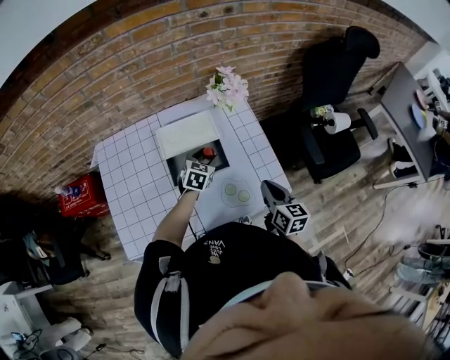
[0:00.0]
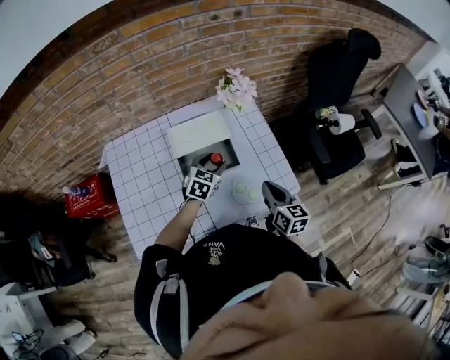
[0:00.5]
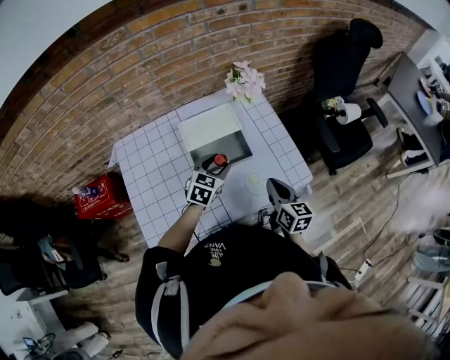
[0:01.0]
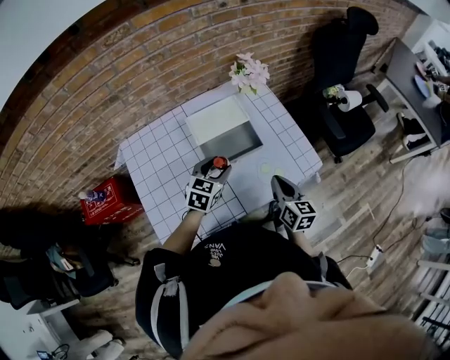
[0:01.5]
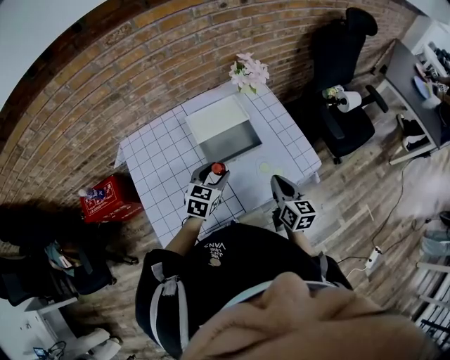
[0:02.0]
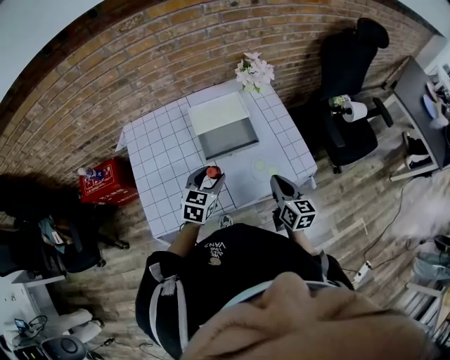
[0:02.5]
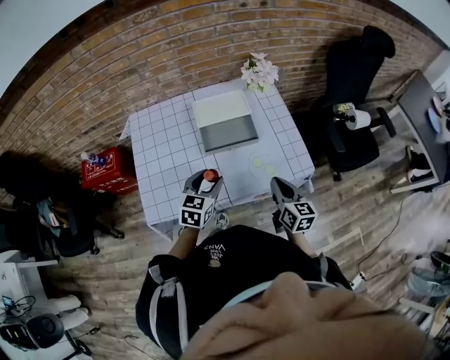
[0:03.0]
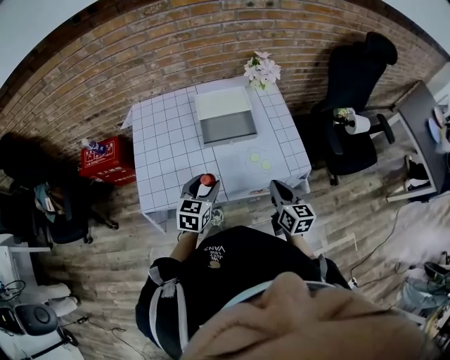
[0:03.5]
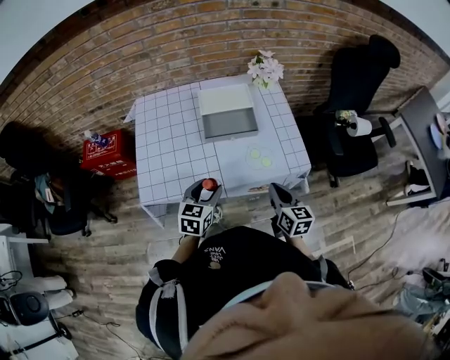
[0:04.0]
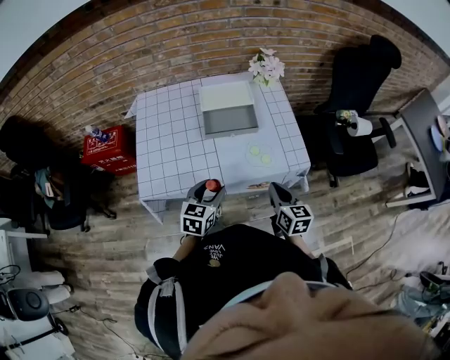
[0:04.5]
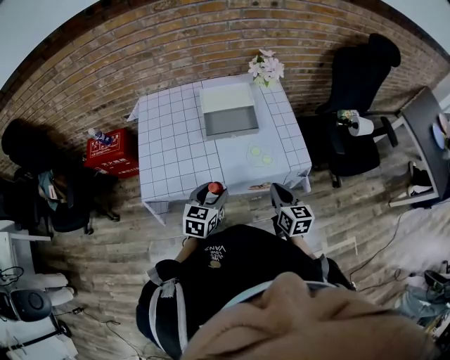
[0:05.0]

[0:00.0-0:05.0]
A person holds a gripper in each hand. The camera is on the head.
0:00.0 to 0:02.5: The right gripper moves backward and to the left, approximately 10 cm. The left gripper is displaced backward and upward by some 20 cm.
0:02.5 to 0:05.0: The right gripper moves backward, approximately 10 cm; the left gripper moves backward, about 15 cm.

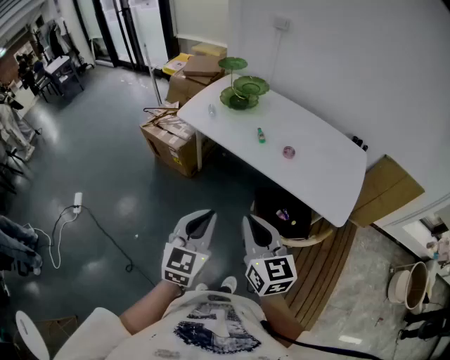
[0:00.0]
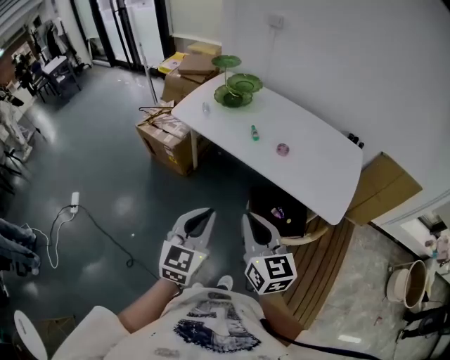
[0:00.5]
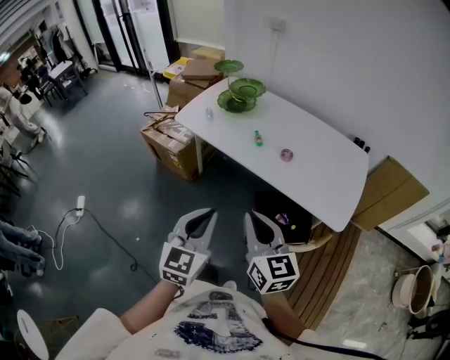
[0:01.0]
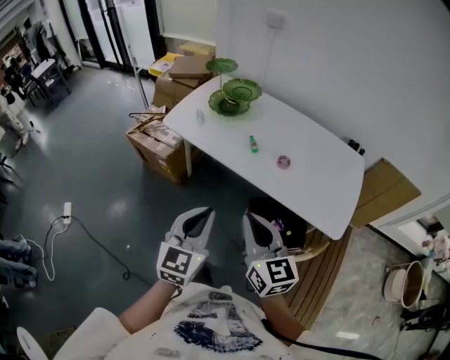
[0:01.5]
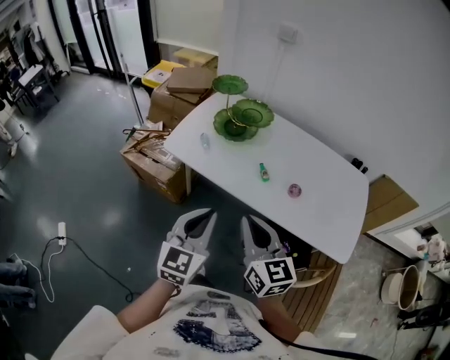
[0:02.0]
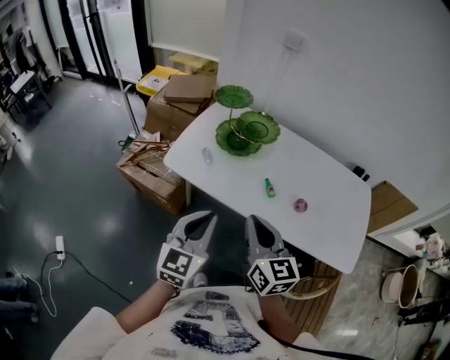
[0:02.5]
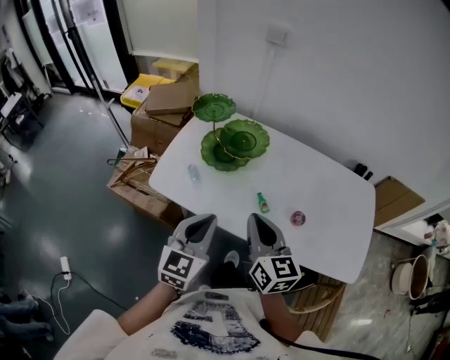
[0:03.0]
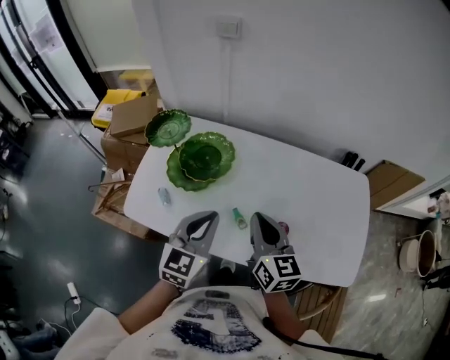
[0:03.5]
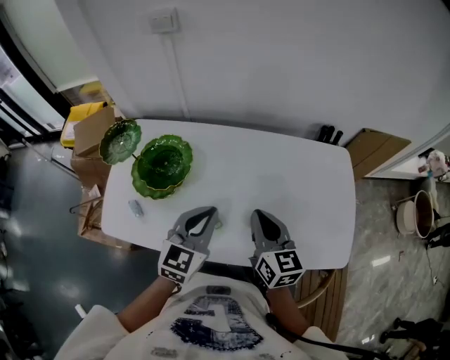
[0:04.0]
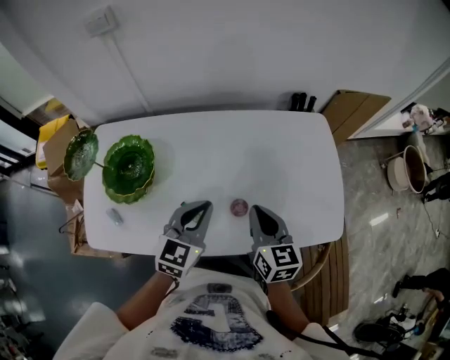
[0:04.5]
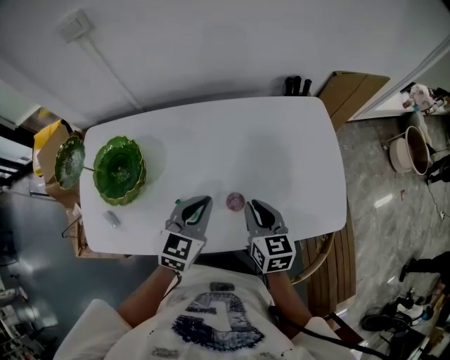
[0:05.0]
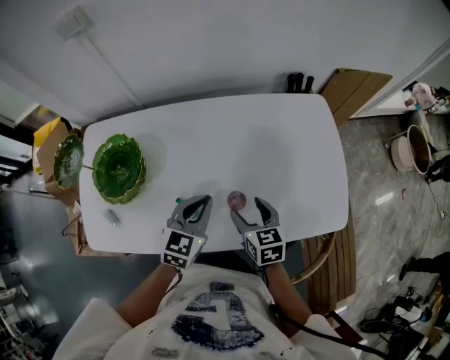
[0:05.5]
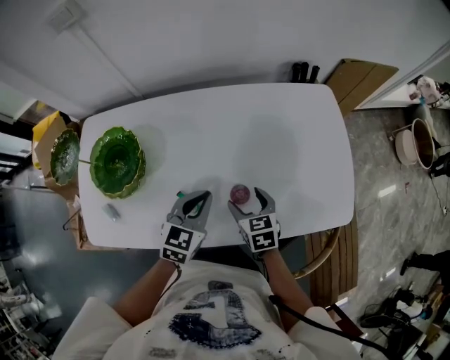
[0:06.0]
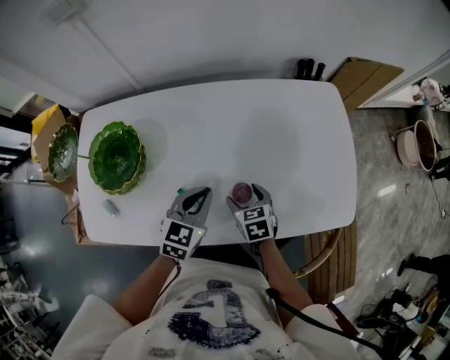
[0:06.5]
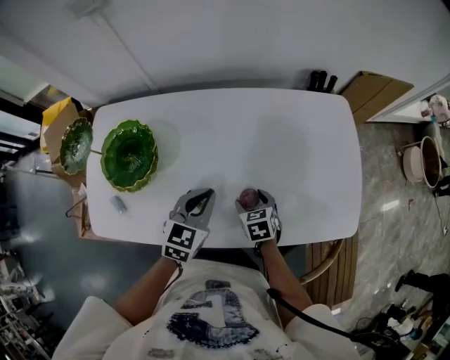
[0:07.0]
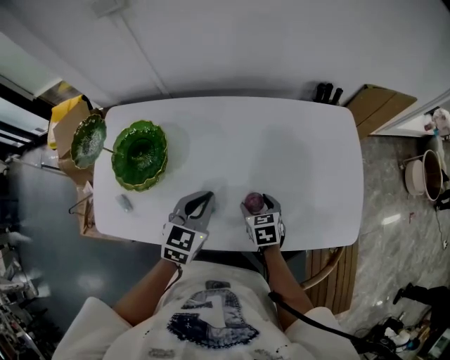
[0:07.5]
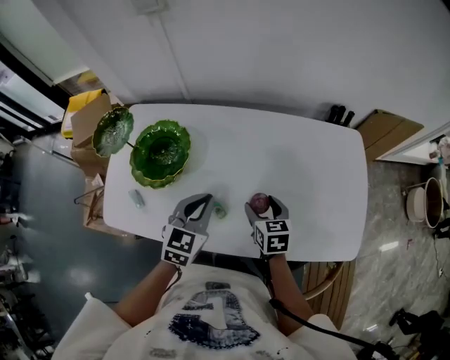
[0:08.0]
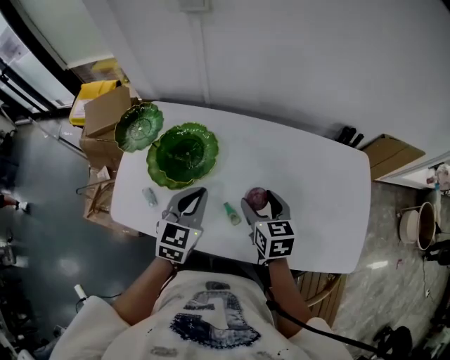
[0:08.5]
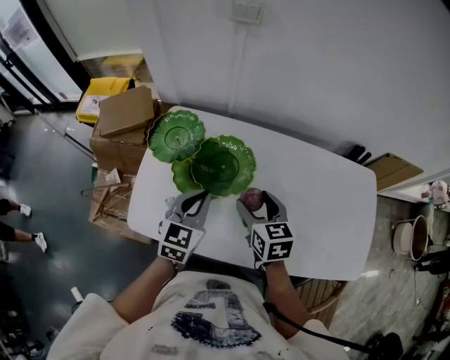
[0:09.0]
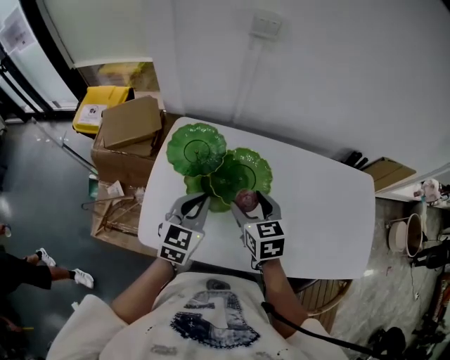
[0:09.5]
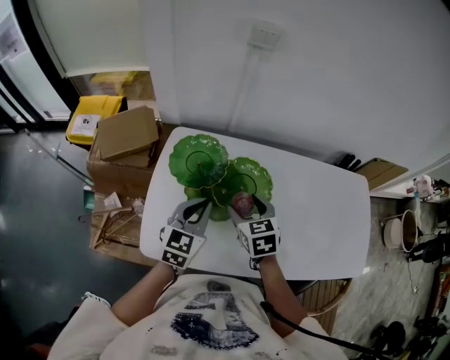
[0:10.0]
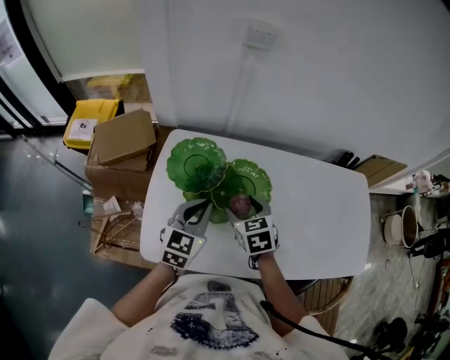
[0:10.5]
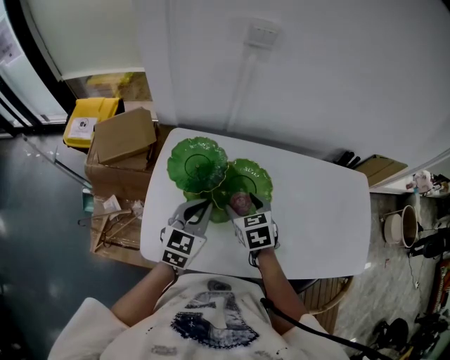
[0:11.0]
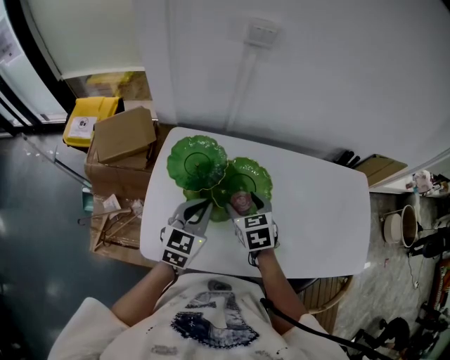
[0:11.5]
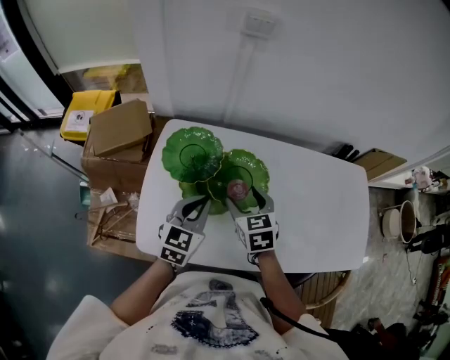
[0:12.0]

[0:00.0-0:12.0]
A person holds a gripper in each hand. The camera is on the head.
0:00.0 to 0:02.0: Both grippers travel together forward, approximately 25 cm.
0:02.0 to 0:04.0: The left gripper shifts by approximately 40 cm, and changes its angle by about 30 degrees; the right gripper shifts by some 40 cm, and turns by about 30 degrees.
0:04.0 to 0:06.0: The right gripper travels downward by roughly 20 cm, turns by roughly 30 degrees, and opens its fingers, while the left gripper moves downward and to the right, roughly 15 cm.
0:06.0 to 0:08.0: The left gripper is displaced to the left and upward by approximately 10 cm. Meanwhile the right gripper moves approximately 5 cm.
0:08.0 to 0:10.0: The grippers both shift to the left by about 30 cm.
0:10.0 to 0:12.0: The grippers stay close to where they were, moving slightly.

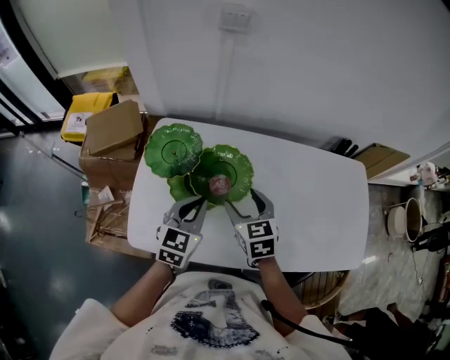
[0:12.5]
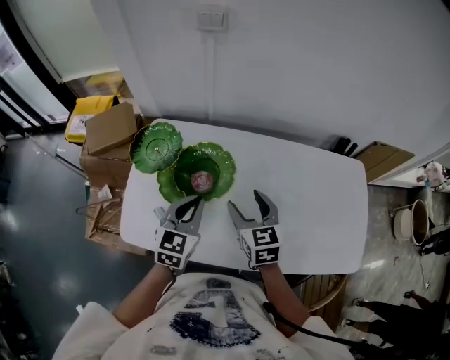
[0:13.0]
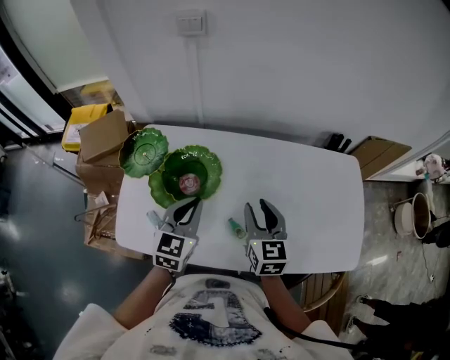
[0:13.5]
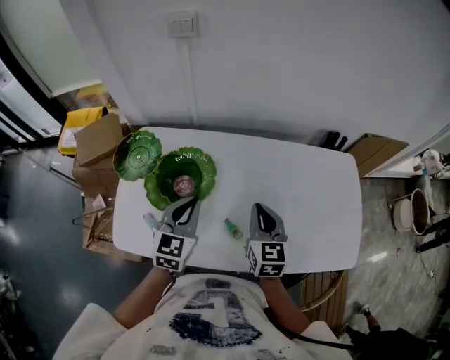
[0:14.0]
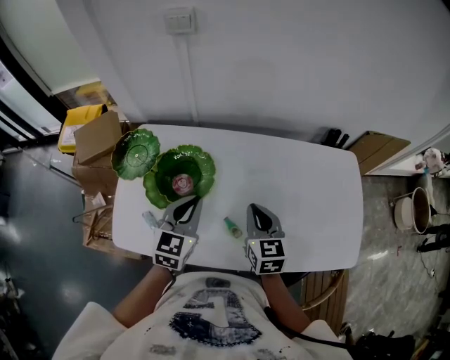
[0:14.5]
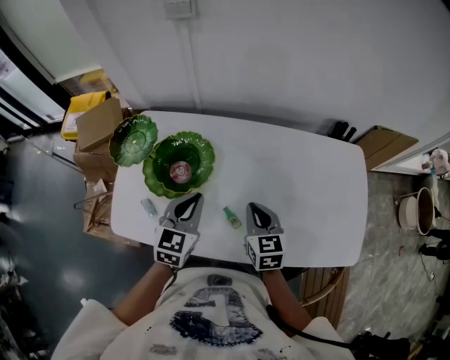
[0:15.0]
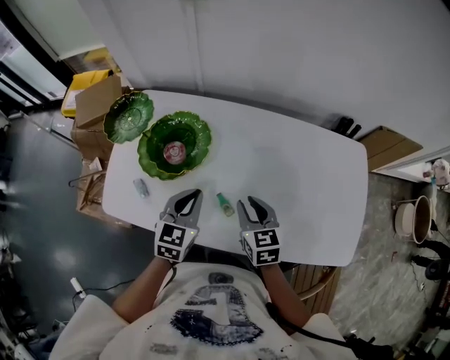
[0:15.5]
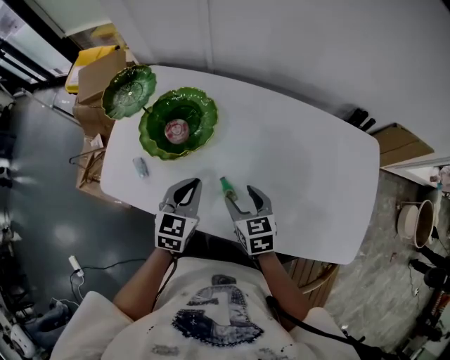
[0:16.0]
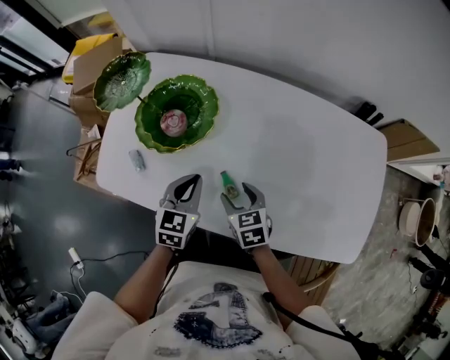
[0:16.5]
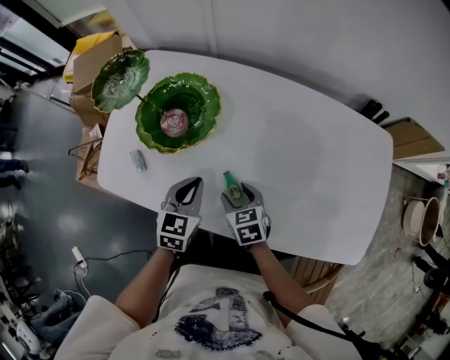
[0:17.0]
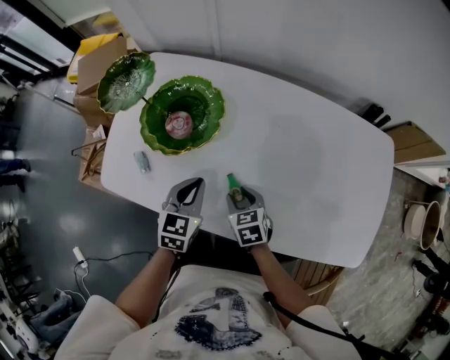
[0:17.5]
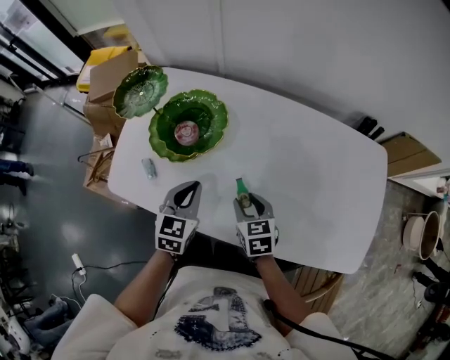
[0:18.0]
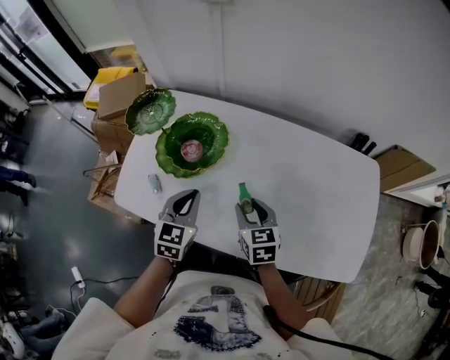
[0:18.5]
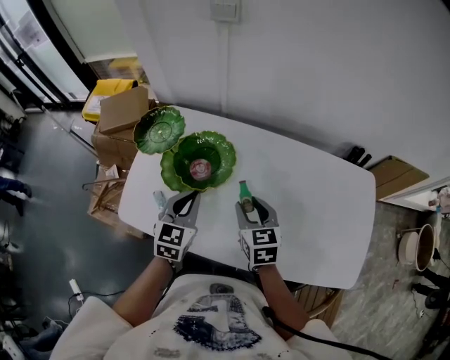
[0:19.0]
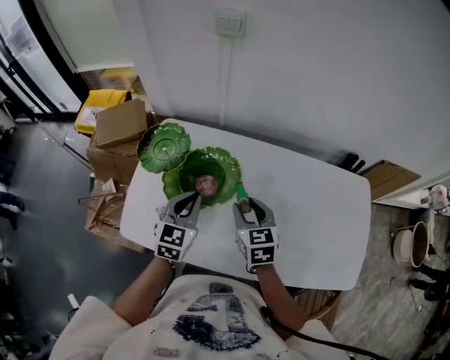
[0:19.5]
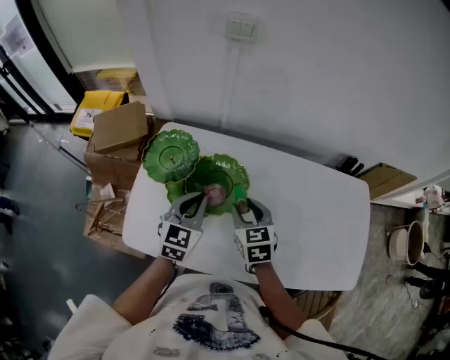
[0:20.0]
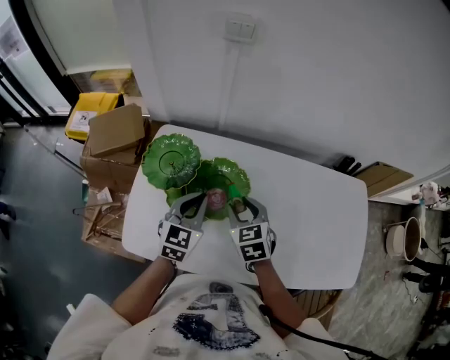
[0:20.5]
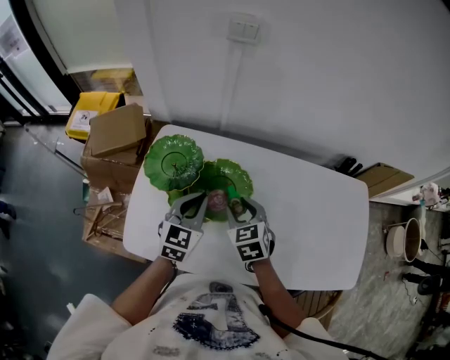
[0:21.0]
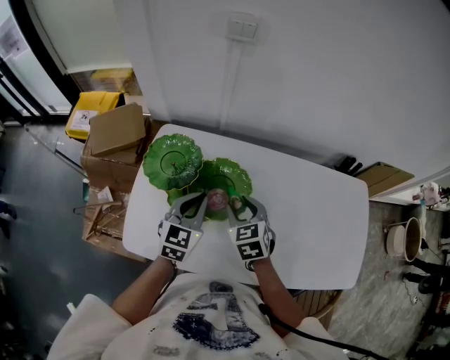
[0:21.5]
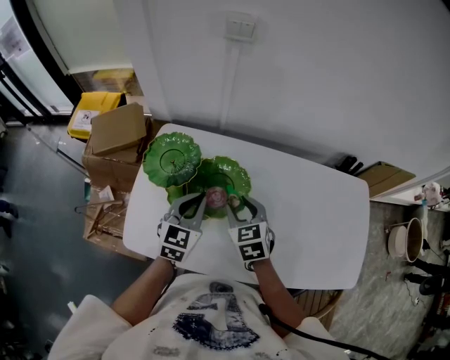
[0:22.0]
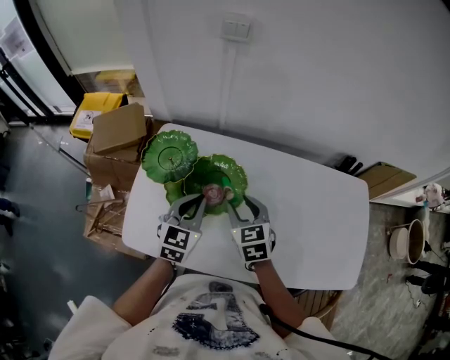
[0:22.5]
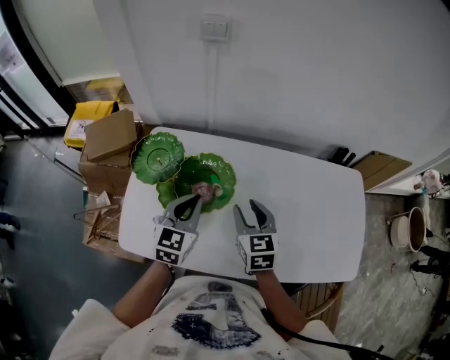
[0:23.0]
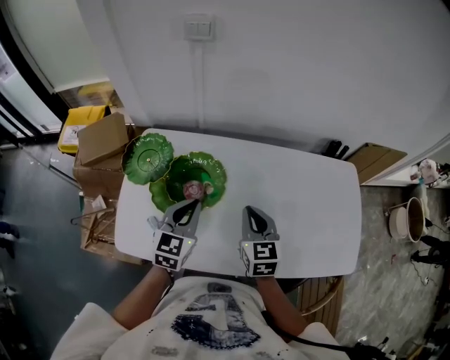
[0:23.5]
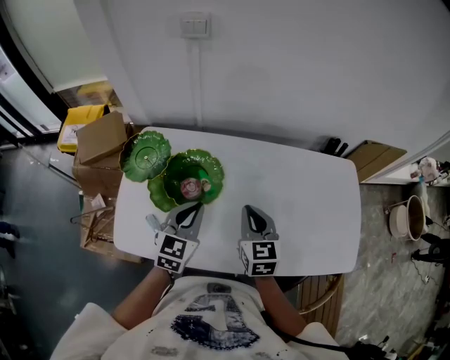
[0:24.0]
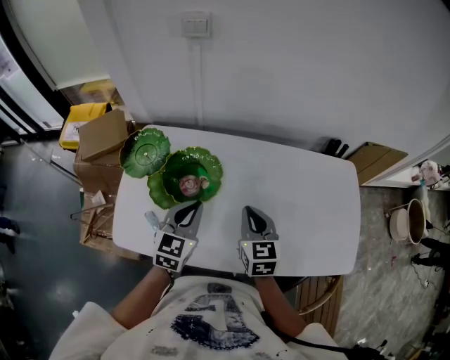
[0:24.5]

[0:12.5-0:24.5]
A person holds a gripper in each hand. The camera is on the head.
0:12.5 to 0:14.5: The left gripper heads to the right, covering about 10 cm. Meanwhile the right gripper heads to the right, covering about 15 cm, and closes up.
0:14.5 to 0:16.5: The right gripper moves downward, approximately 20 cm, changes its angle by some 30 degrees, and opens up. The left gripper is displaced downward and backward by approximately 15 cm.
0:16.5 to 0:18.5: Both grippers move upward, about 10 cm.
0:18.5 to 0:20.5: The right gripper moves to the left, forward and upward, approximately 20 cm; the left gripper travels forward and to the left by approximately 15 cm.
0:20.5 to 0:22.5: The grippers move only a little.
0:22.5 to 0:24.5: The right gripper is displaced to the right by about 10 cm, and closes up; the left gripper heads to the right, covering some 5 cm.
